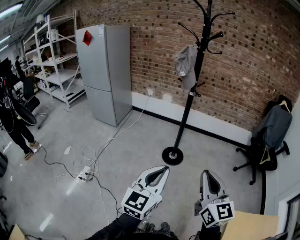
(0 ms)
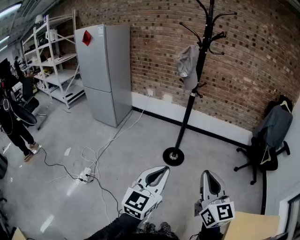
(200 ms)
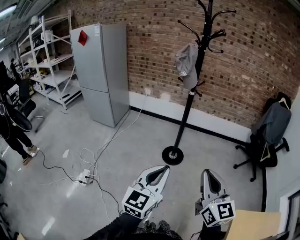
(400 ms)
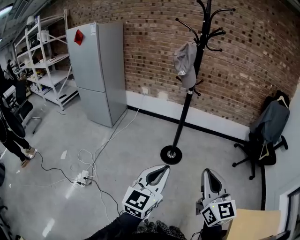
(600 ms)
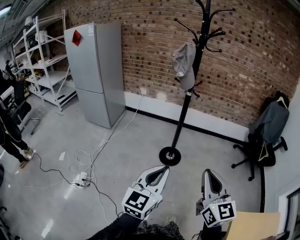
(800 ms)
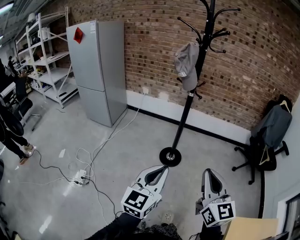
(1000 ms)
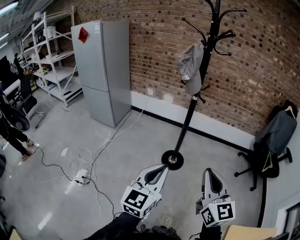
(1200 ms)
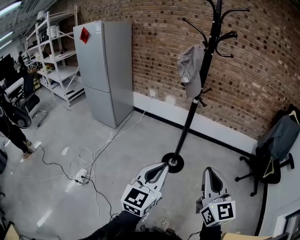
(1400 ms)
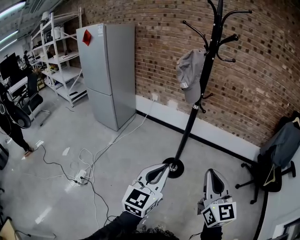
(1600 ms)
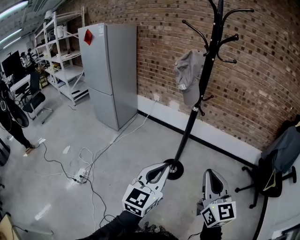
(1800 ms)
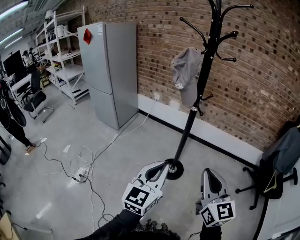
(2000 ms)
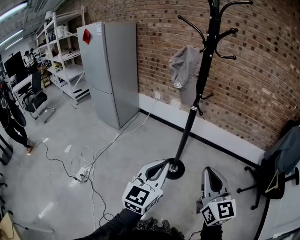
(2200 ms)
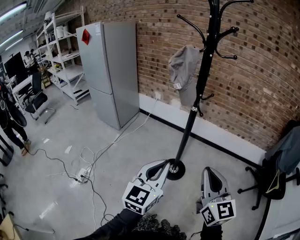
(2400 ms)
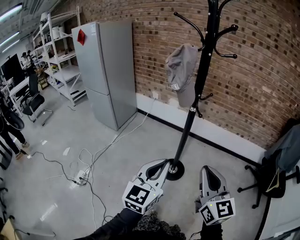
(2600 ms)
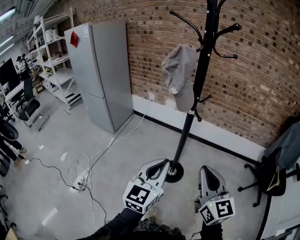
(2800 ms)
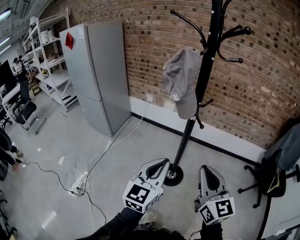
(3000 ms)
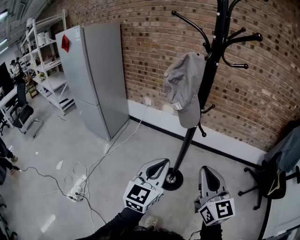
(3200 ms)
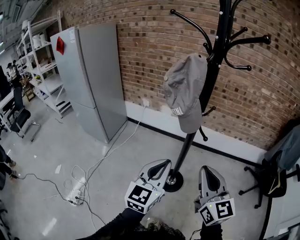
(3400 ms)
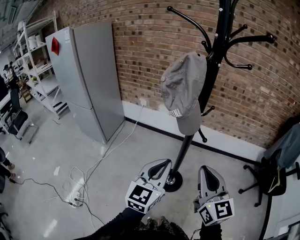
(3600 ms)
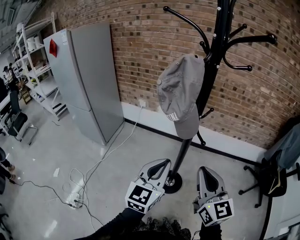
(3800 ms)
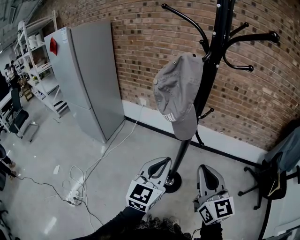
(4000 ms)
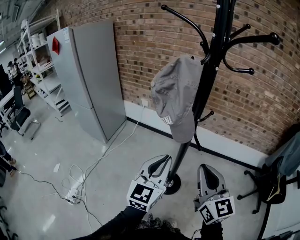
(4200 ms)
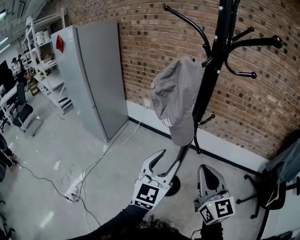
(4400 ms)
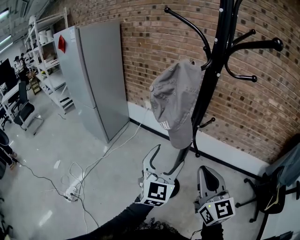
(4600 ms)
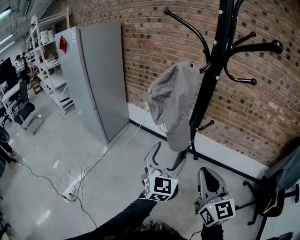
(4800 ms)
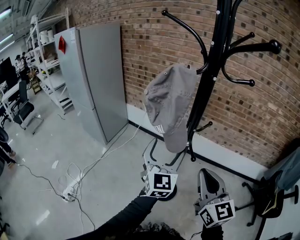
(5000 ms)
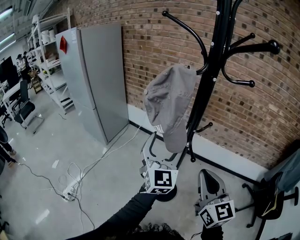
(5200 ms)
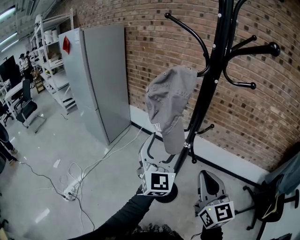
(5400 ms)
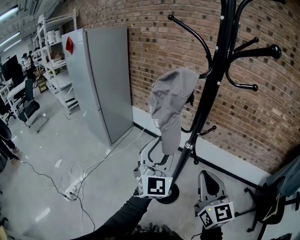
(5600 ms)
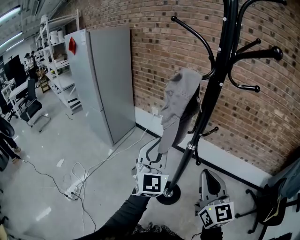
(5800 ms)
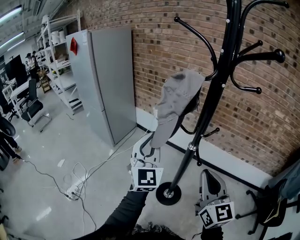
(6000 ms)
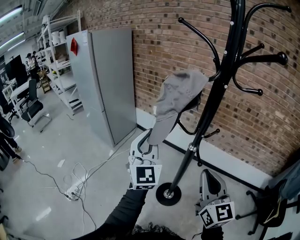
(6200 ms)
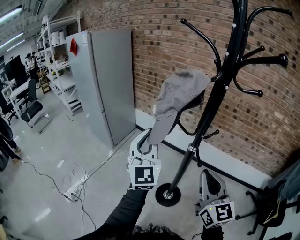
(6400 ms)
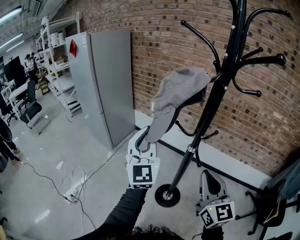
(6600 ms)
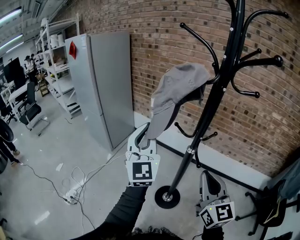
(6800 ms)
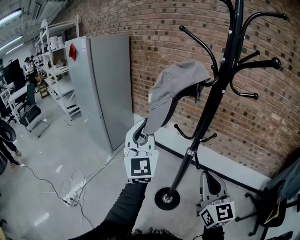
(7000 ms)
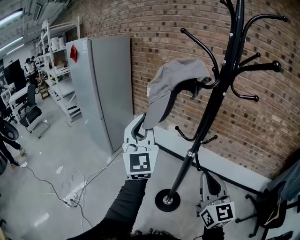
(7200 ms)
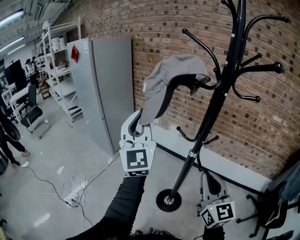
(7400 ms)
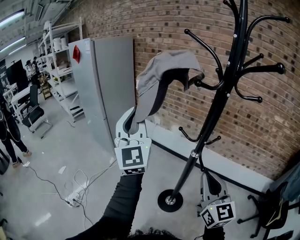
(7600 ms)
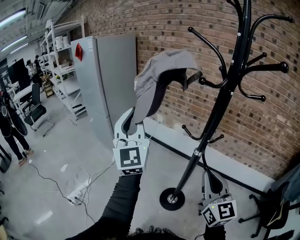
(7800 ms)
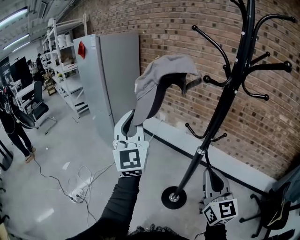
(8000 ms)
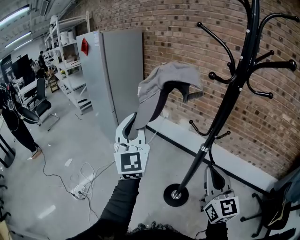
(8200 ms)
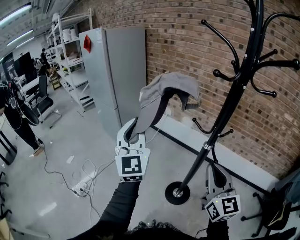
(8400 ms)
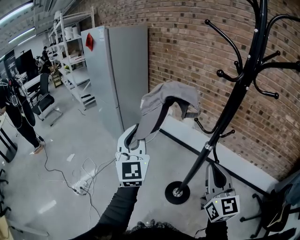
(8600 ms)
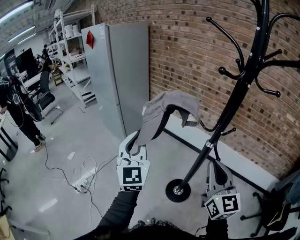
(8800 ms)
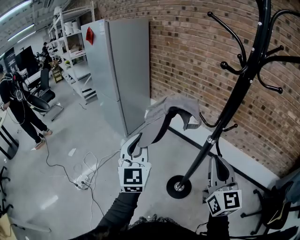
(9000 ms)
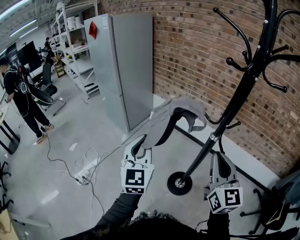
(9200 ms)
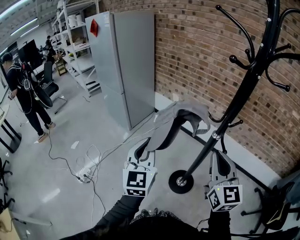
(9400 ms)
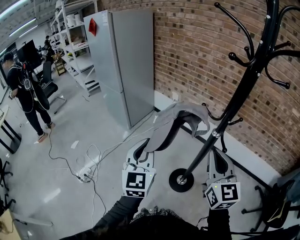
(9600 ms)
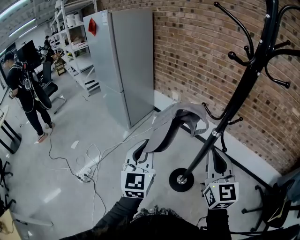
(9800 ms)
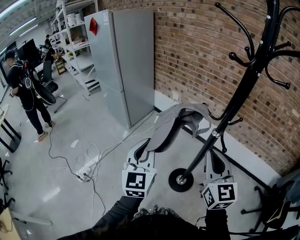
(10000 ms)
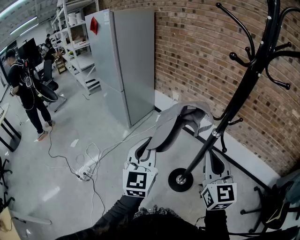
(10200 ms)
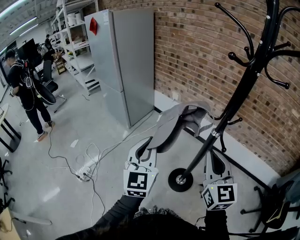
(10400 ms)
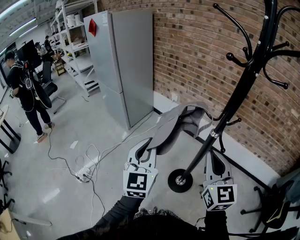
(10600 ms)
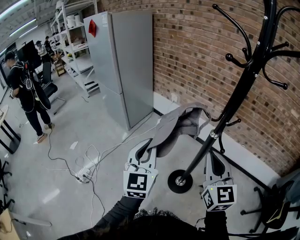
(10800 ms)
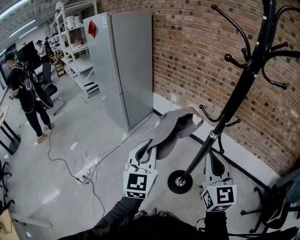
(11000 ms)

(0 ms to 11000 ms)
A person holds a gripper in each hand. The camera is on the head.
0 ms - 1600 ms: The two grippers go roughly 20 cm forward.
1600 ms - 3200 ms: The grippers both shift forward by approximately 20 cm.
3200 ms - 4800 ms: The two grippers go approximately 15 cm forward. The left gripper turns by some 20 degrees, and opens its fingers.
4800 ms - 6200 ms: The left gripper moves to the left and upward, roughly 15 cm, changes its angle by approximately 20 degrees, and closes its fingers.
6200 ms - 7800 ms: The left gripper is displaced upward and to the left by some 15 cm.
7800 ms - 9400 ms: The left gripper heads downward and backward, covering about 20 cm, and rotates some 30 degrees.
9400 ms - 11000 ms: The grippers make only small movements.

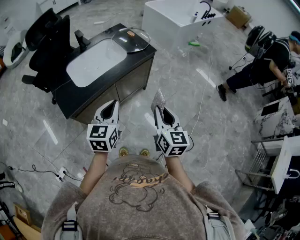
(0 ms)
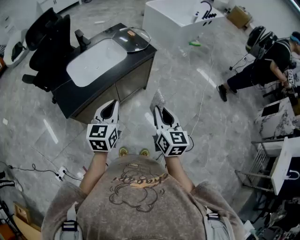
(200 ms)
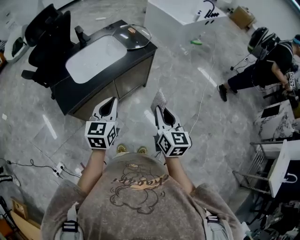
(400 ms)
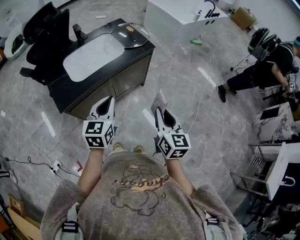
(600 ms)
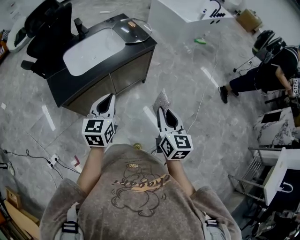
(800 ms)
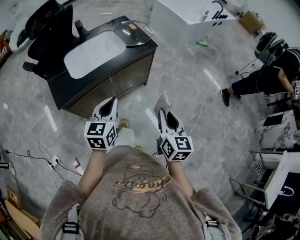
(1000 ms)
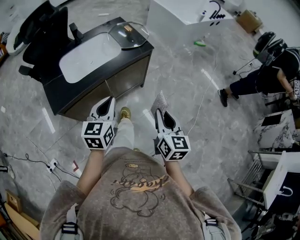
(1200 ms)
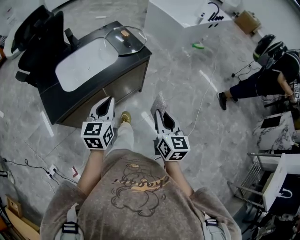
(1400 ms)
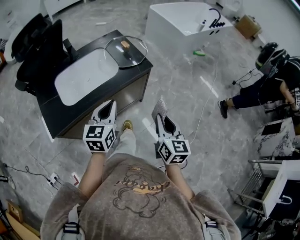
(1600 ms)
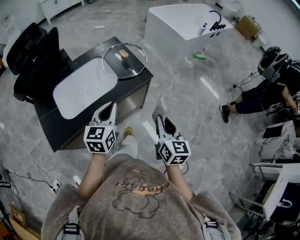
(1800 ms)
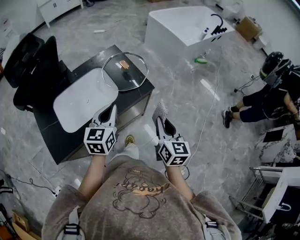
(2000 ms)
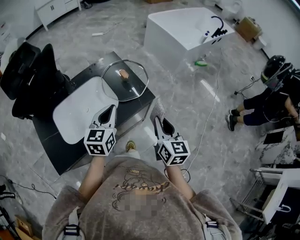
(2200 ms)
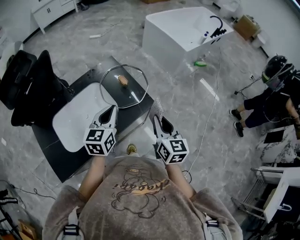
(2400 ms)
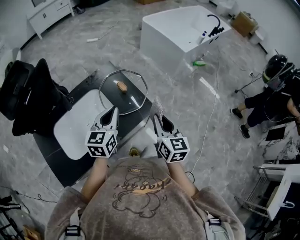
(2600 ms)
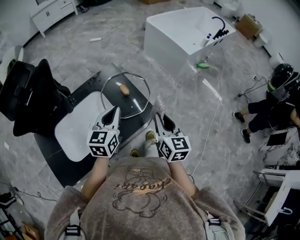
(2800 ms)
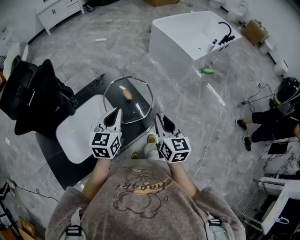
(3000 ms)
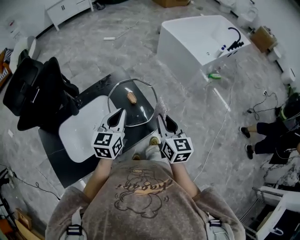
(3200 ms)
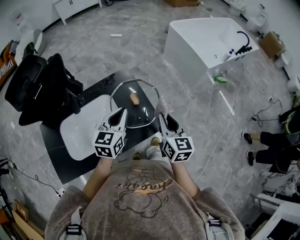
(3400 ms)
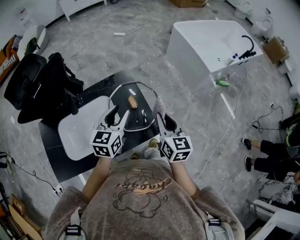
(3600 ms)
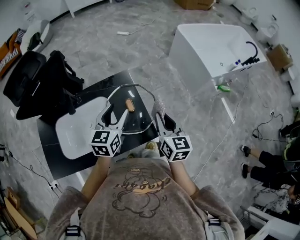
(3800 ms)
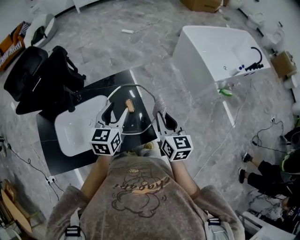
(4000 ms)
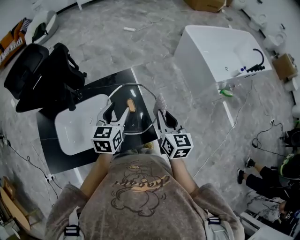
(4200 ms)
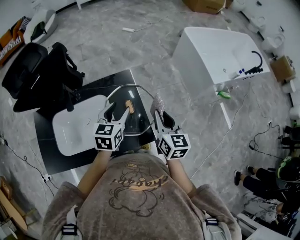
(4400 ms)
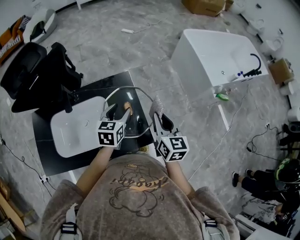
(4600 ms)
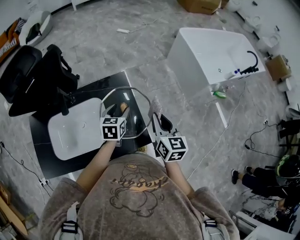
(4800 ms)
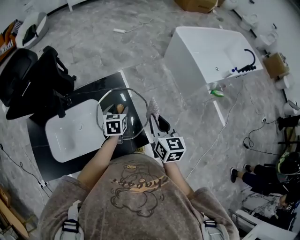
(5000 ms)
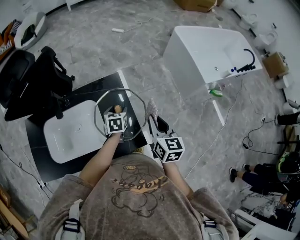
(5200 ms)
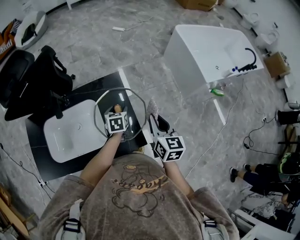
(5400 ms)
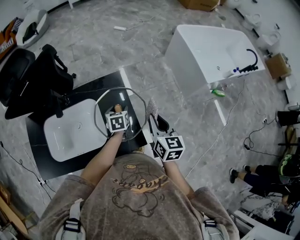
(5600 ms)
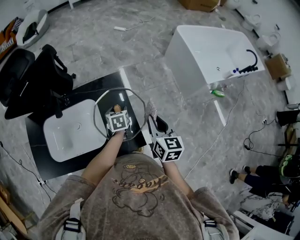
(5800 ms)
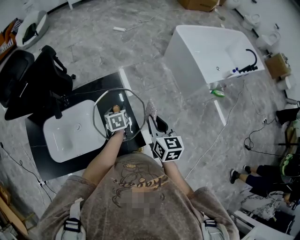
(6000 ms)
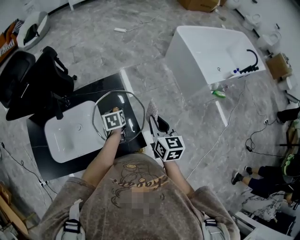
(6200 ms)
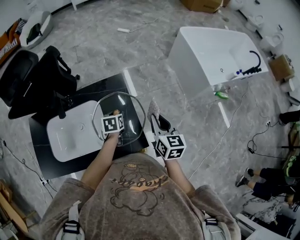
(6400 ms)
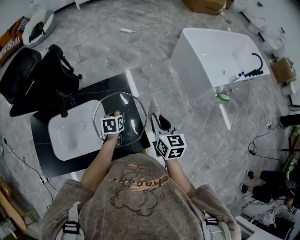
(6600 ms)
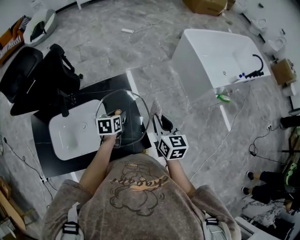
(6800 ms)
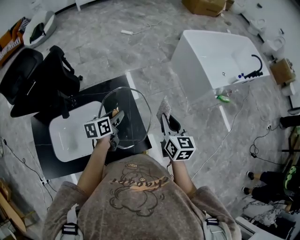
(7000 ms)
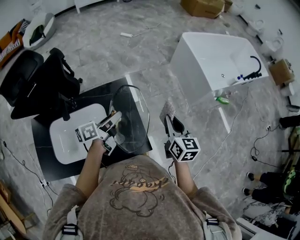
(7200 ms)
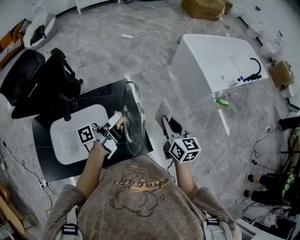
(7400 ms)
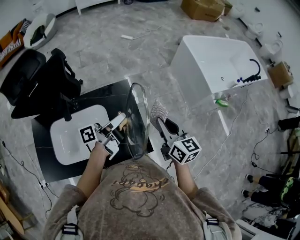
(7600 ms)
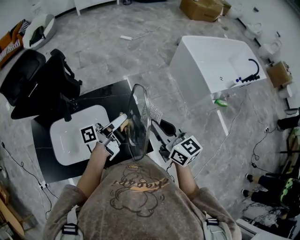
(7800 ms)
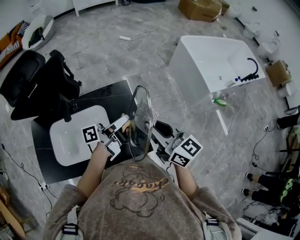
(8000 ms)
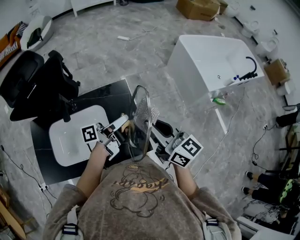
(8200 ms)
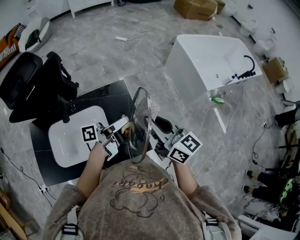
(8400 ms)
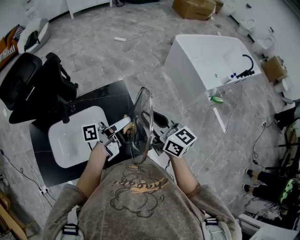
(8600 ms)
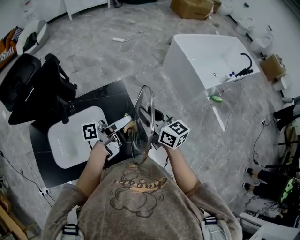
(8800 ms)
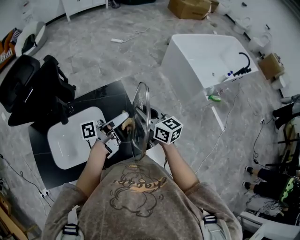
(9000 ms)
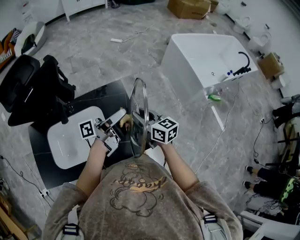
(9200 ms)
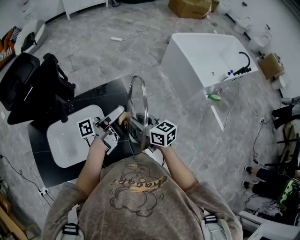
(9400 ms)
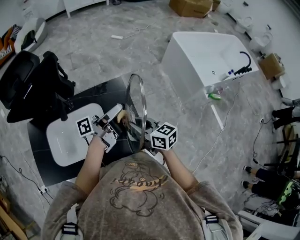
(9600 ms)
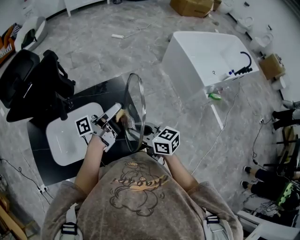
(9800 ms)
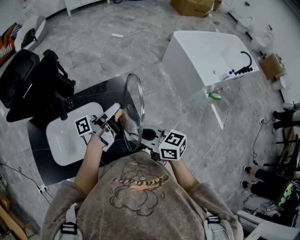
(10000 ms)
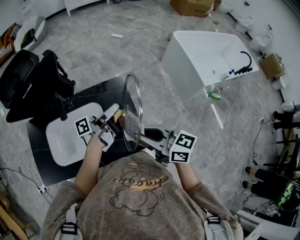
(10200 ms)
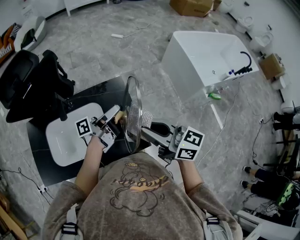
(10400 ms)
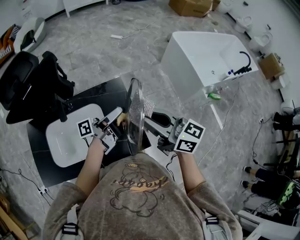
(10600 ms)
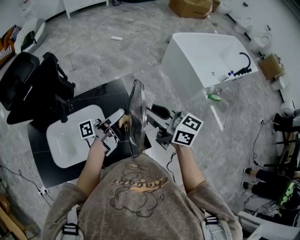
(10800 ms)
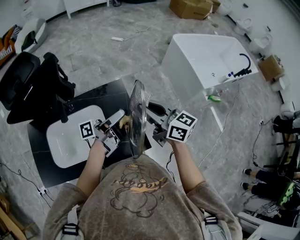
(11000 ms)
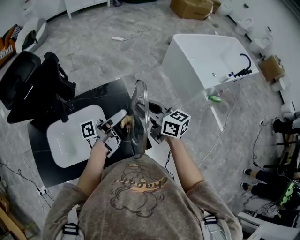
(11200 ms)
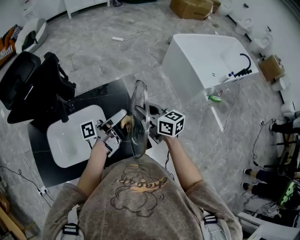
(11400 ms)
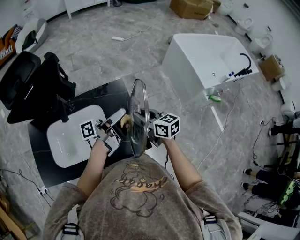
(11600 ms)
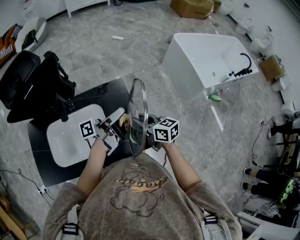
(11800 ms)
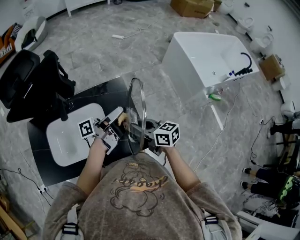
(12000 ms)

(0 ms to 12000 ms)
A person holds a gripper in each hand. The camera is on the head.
0 ms - 1600 ms: The left gripper goes approximately 15 cm forward, while the right gripper goes approximately 15 cm forward and to the right.
1600 ms - 3000 ms: The grippers both shift forward by approximately 35 cm.
3000 ms - 4400 ms: The two grippers go some 15 cm forward. The left gripper opens.
4400 ms - 6000 ms: The right gripper changes place by about 5 cm. Meanwhile the left gripper shifts roughly 20 cm downward, and changes its angle by roughly 30 degrees.
6000 ms - 7600 ms: The left gripper travels upward by some 20 cm, and tips its fingers upward by approximately 60 degrees, while the right gripper moves upward, roughly 5 cm.
7600 ms - 9000 ms: The right gripper is displaced to the left by approximately 5 cm, and moves about 10 cm upward and comes back.
9000 ms - 10400 ms: The right gripper is displaced backward and upward by about 15 cm, and rotates approximately 20 degrees.
10400 ms - 12000 ms: The right gripper travels downward by about 15 cm.

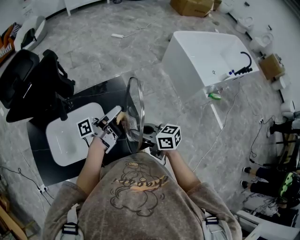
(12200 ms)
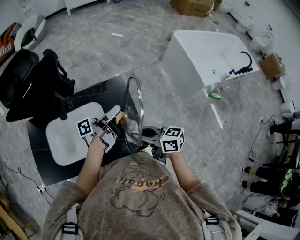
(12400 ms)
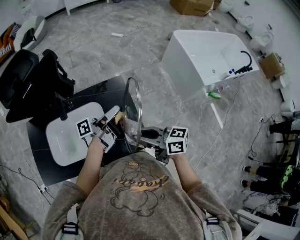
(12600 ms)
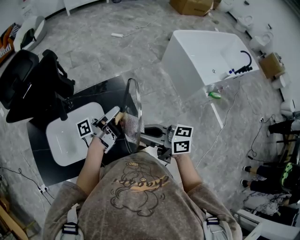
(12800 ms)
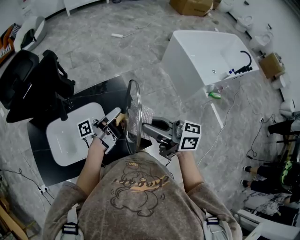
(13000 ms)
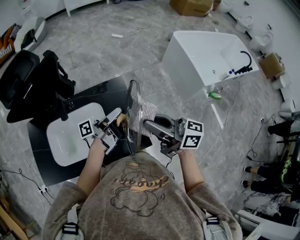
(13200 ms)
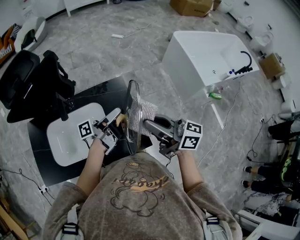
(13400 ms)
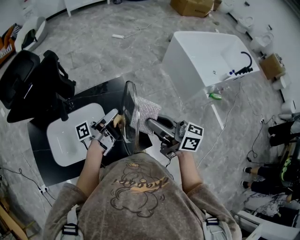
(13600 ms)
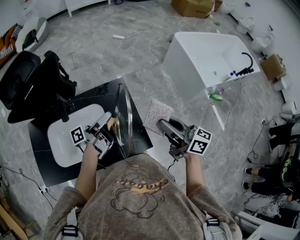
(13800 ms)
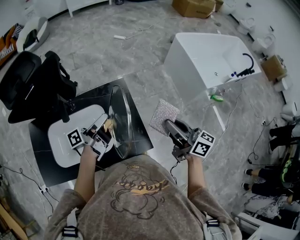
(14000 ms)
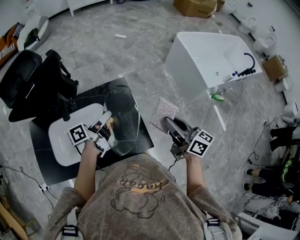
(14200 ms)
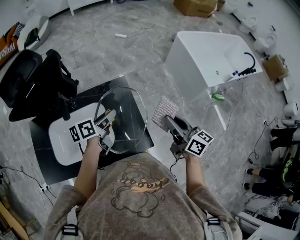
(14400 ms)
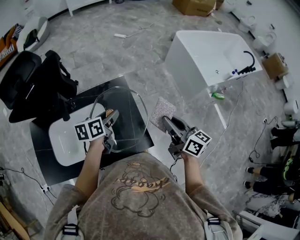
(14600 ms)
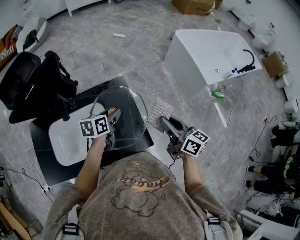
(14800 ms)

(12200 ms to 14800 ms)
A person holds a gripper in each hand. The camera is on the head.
12200 ms - 13400 ms: The right gripper goes about 15 cm upward, and swivels roughly 20 degrees.
13400 ms - 14800 ms: The right gripper goes roughly 10 cm to the right and downward, and changes its angle by approximately 30 degrees. Meanwhile the left gripper travels downward by roughly 5 cm, and points its fingers about 50 degrees further downward.
